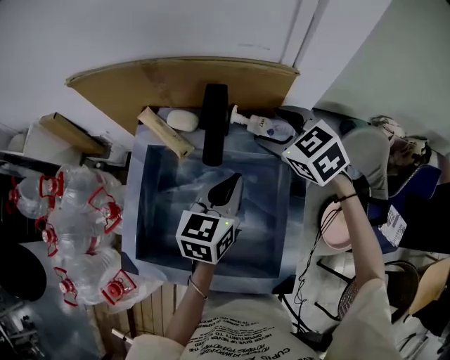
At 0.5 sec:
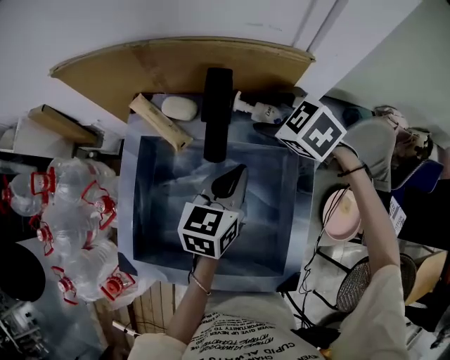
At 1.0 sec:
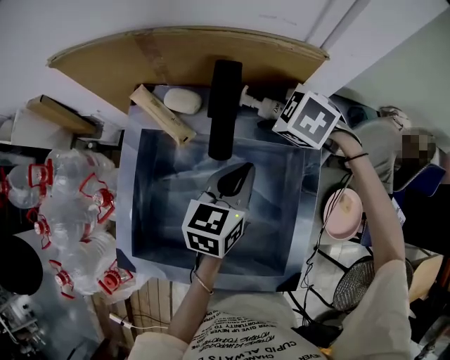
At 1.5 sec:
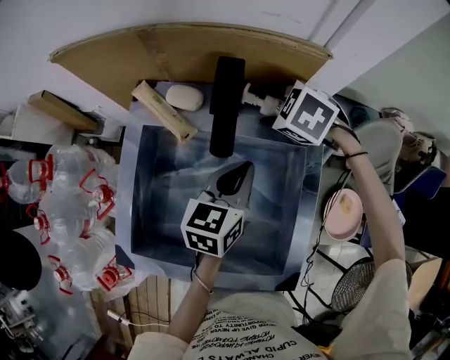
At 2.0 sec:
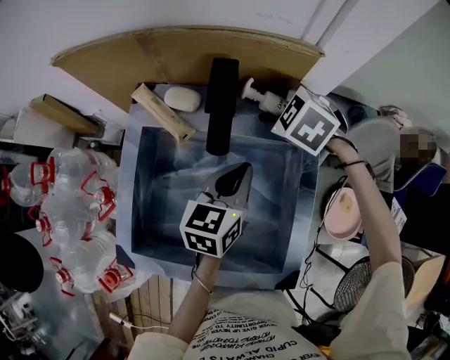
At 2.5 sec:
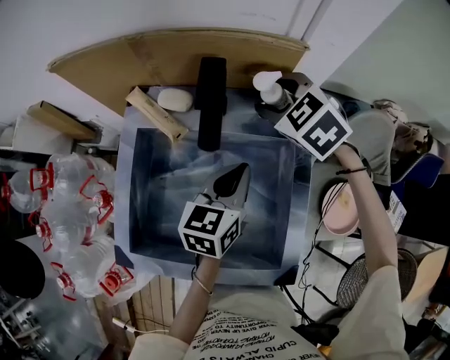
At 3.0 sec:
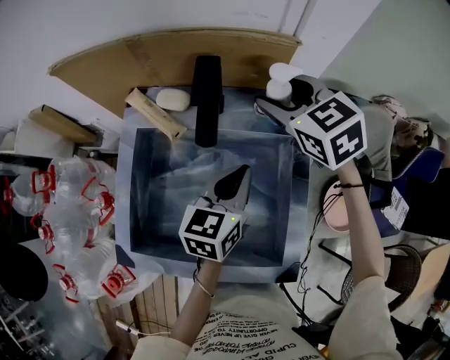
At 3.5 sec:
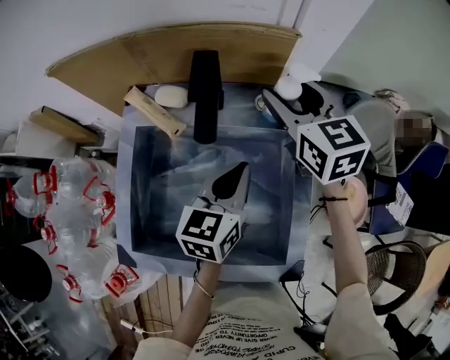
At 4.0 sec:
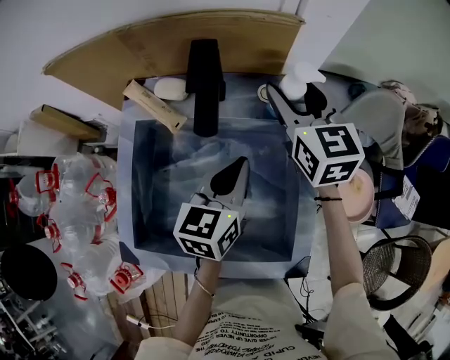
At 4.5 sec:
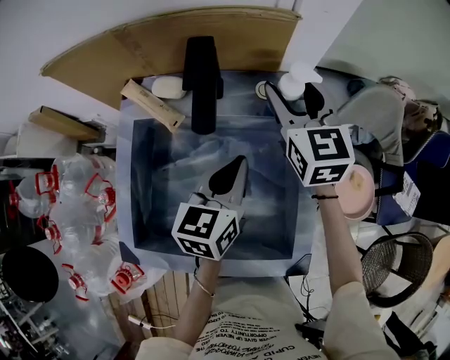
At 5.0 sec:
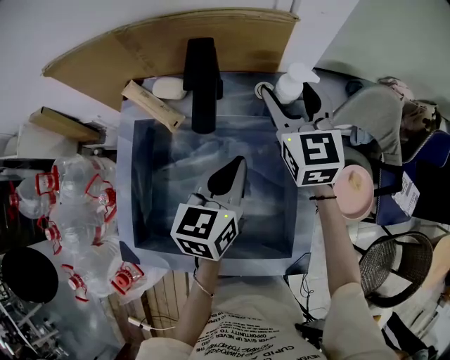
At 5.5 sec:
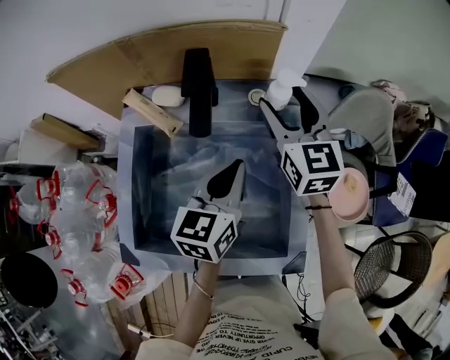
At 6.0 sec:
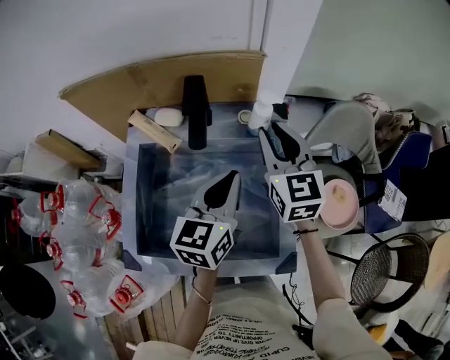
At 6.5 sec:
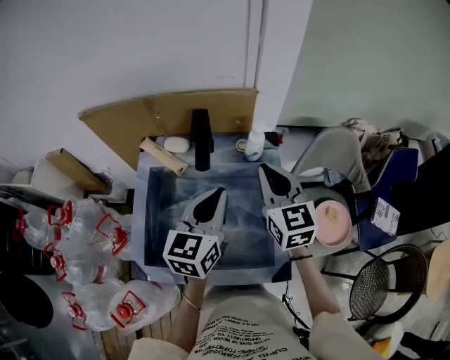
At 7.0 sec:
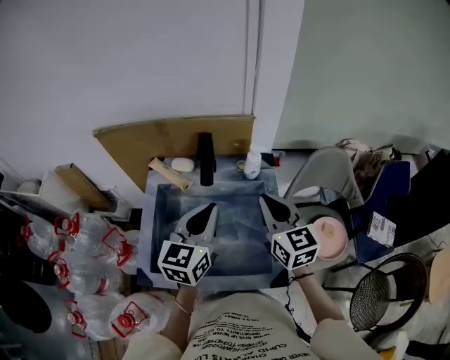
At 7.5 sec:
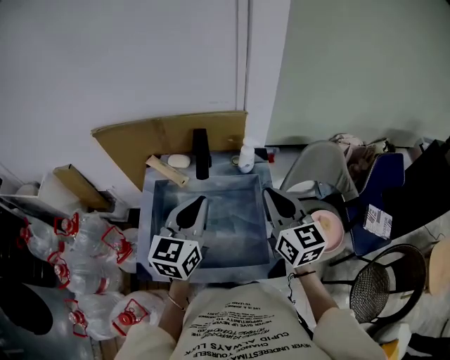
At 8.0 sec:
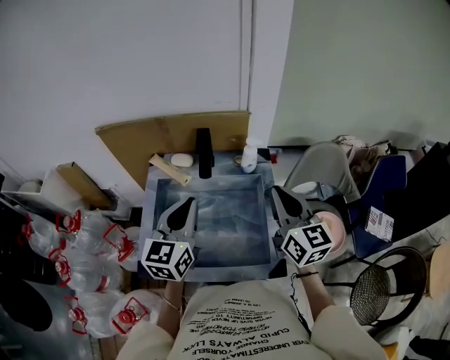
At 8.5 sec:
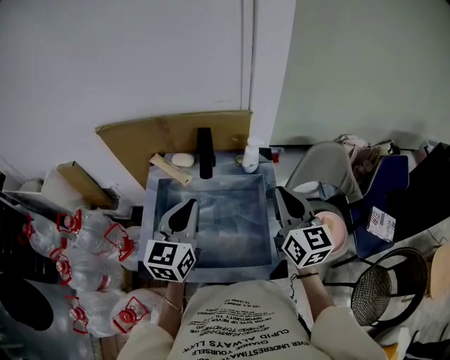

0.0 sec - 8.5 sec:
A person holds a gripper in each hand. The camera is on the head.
0.0 sec - 2.0 sec: The right gripper shifts roughly 5 cm downward, and swivels roughly 30 degrees.
2.0 sec - 4.0 sec: The right gripper goes approximately 10 cm upward and to the right, and tilts its fingers about 40 degrees upward.
4.0 sec - 6.5 sec: The left gripper shifts about 10 cm upward. The right gripper shifts roughly 15 cm backward, and closes.
6.5 sec - 8.5 sec: The right gripper heads backward, covering roughly 5 cm. The left gripper shifts roughly 5 cm to the left.

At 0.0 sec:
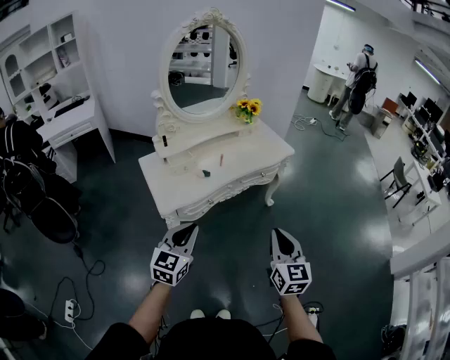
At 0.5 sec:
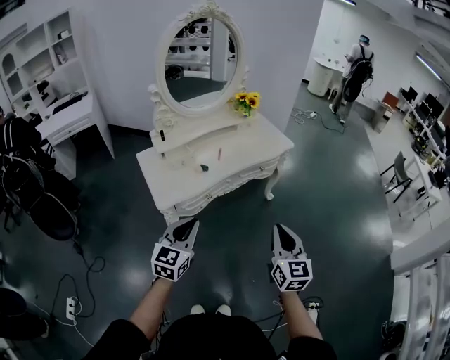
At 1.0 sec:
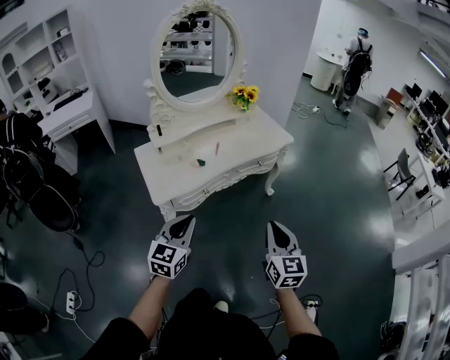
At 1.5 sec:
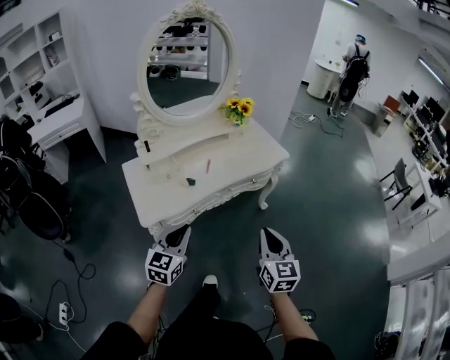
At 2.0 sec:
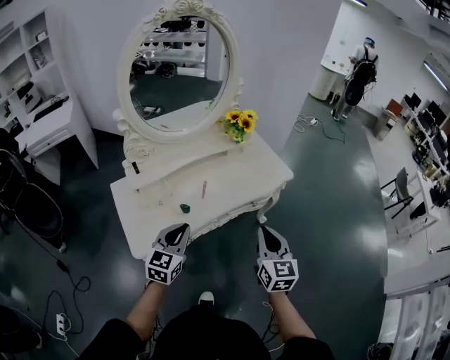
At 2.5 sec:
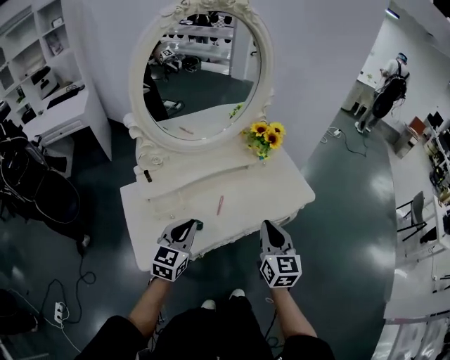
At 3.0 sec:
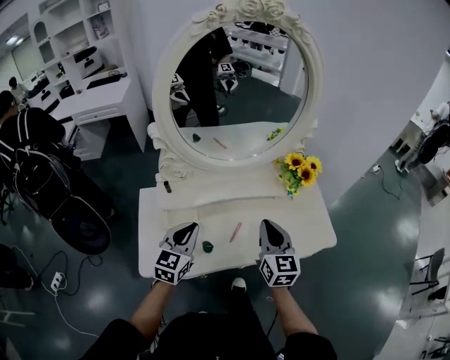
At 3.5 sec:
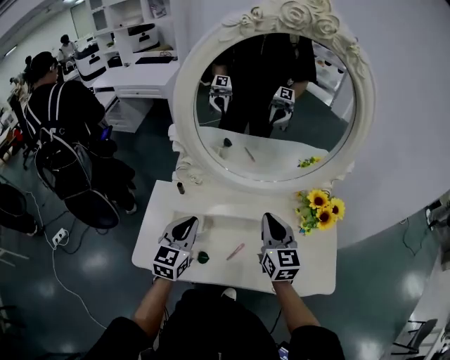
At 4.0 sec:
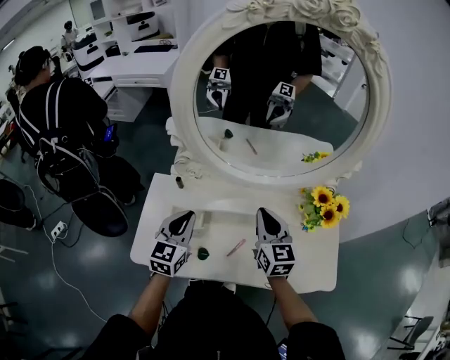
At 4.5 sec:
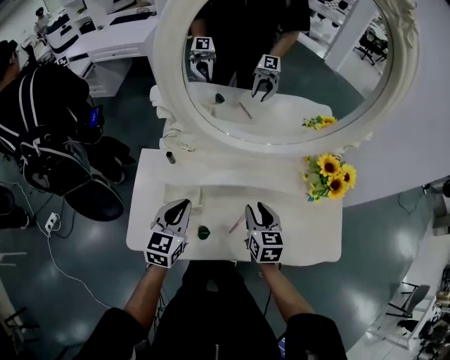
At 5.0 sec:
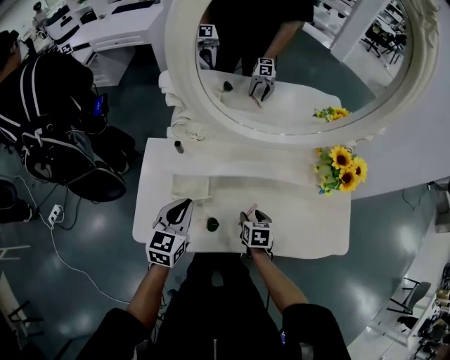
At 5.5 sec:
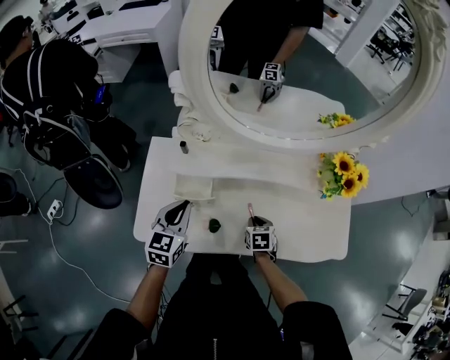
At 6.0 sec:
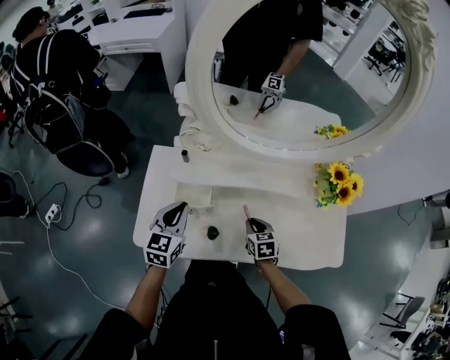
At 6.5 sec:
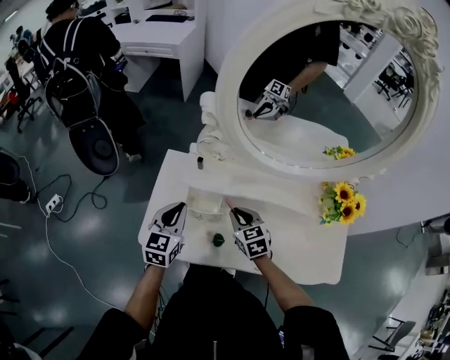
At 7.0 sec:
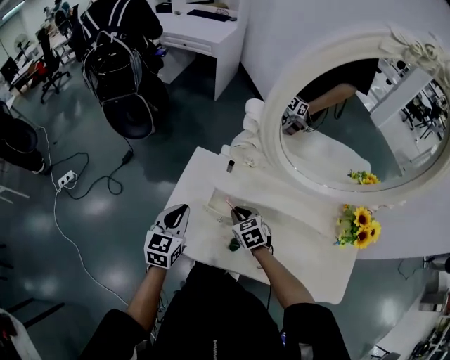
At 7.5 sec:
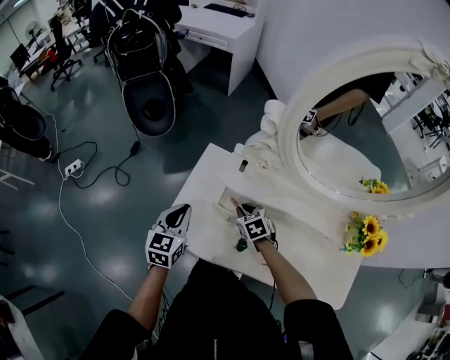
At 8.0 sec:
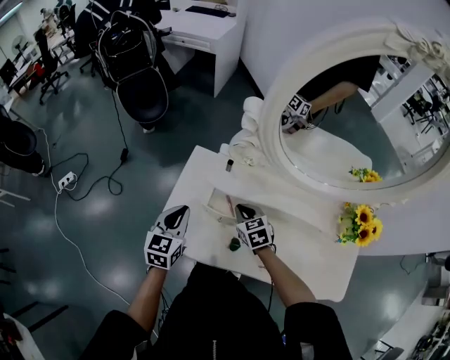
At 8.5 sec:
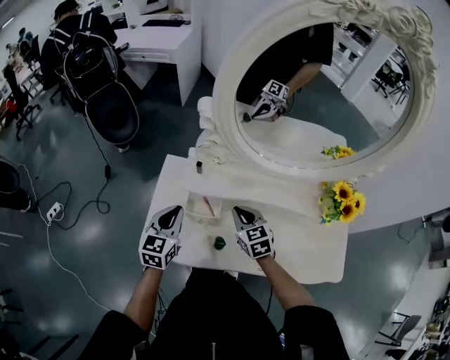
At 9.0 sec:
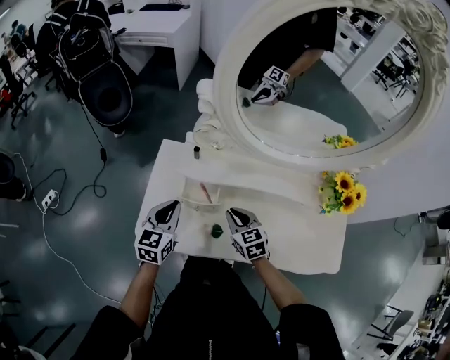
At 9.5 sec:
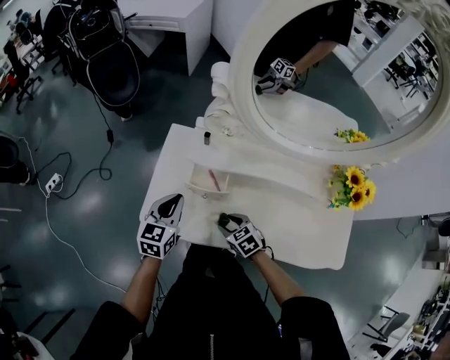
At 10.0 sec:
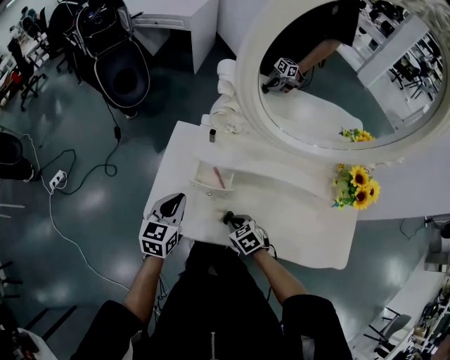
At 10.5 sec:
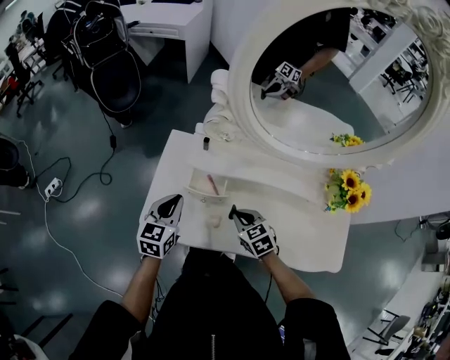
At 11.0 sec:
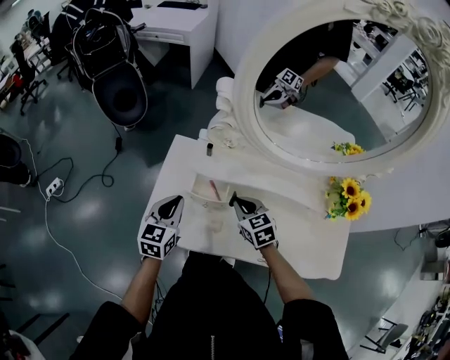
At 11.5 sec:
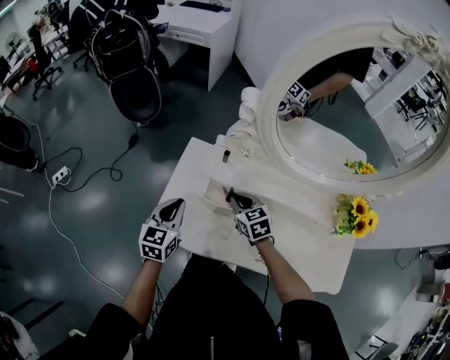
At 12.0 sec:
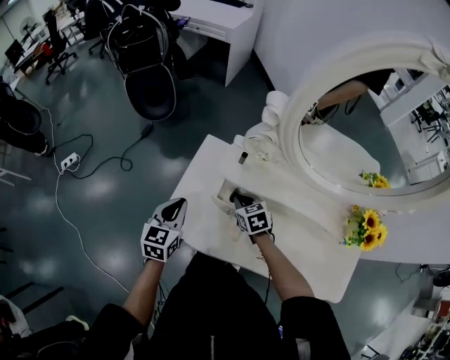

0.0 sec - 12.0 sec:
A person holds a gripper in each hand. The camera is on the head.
0.0 sec - 2.0 sec: The grippers both shift forward by roughly 30 cm.
2.0 sec - 4.0 sec: The right gripper shifts by roughly 40 cm, and changes its angle by some 40 degrees. The left gripper ends up roughly 30 cm from where it was, and rotates roughly 40 degrees.
4.0 sec - 6.0 sec: The left gripper heads downward and to the left, covering roughly 10 cm, while the right gripper is displaced downward by about 25 cm, points its fingers roughly 40 degrees further downward, and opens, then closes again.
6.0 sec - 8.0 sec: The left gripper goes roughly 10 cm to the left. The right gripper goes roughly 20 cm to the left and forward, and turns by approximately 30 degrees.
8.0 sec - 10.0 sec: The left gripper shifts by about 5 cm; the right gripper moves backward and downward, about 20 cm, and opens, then closes once more.
10.0 sec - 12.0 sec: The right gripper goes approximately 20 cm forward and upward. The left gripper goes some 5 cm to the left.

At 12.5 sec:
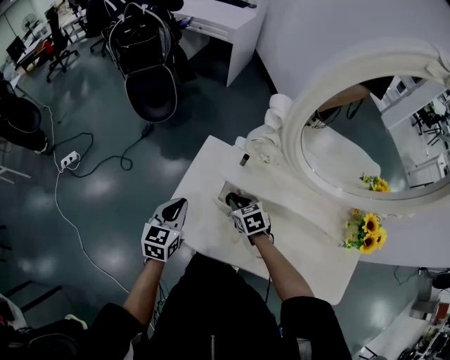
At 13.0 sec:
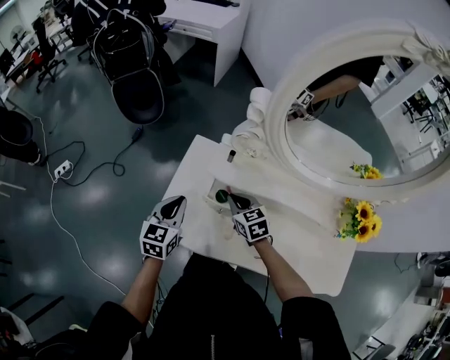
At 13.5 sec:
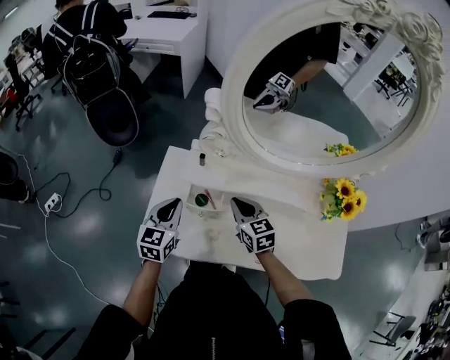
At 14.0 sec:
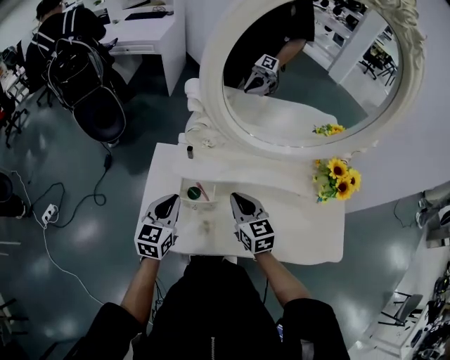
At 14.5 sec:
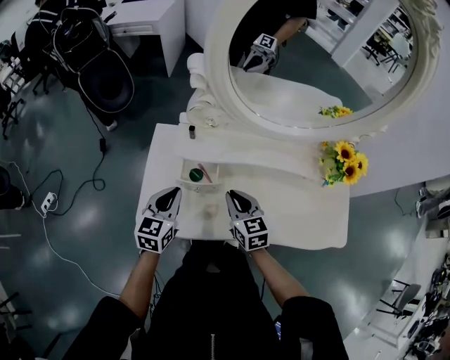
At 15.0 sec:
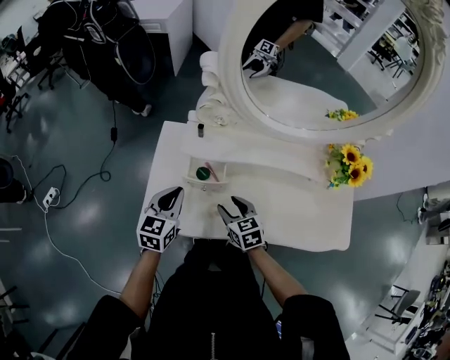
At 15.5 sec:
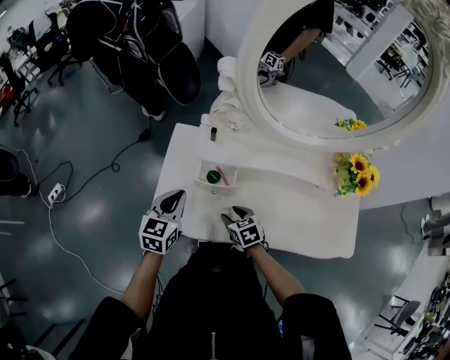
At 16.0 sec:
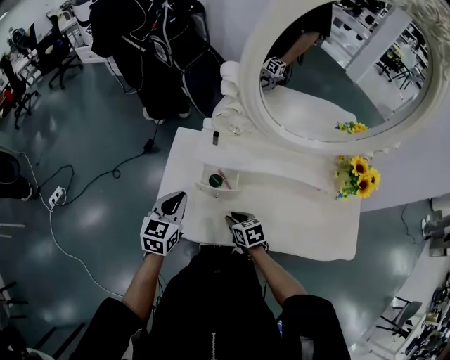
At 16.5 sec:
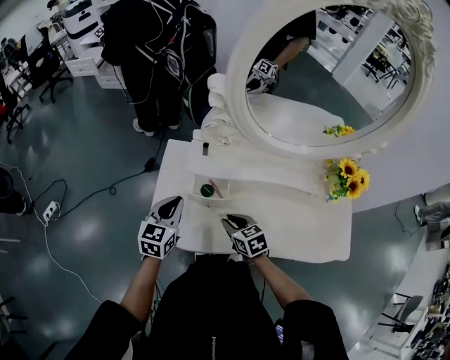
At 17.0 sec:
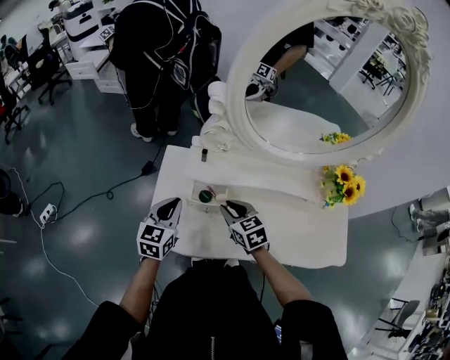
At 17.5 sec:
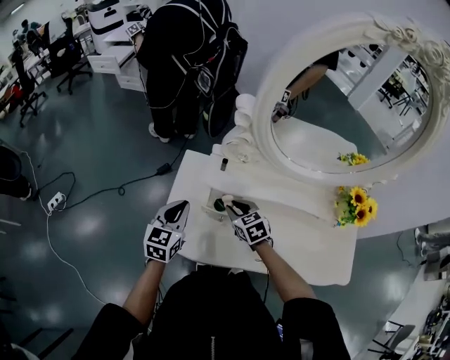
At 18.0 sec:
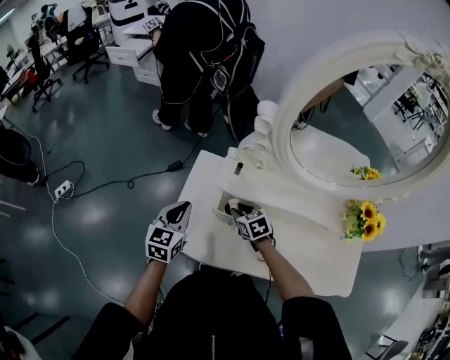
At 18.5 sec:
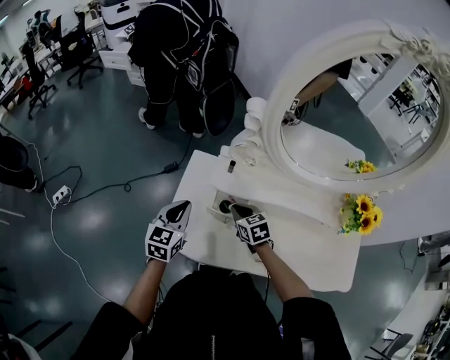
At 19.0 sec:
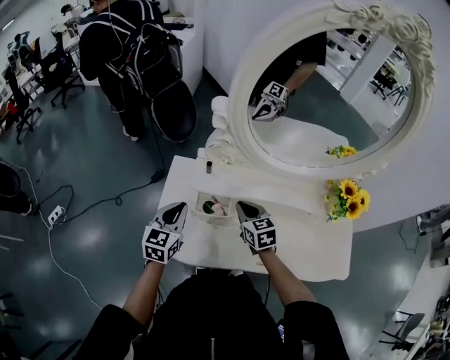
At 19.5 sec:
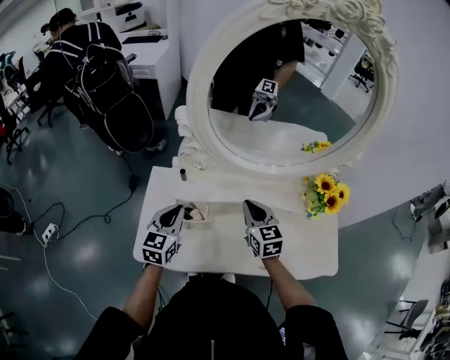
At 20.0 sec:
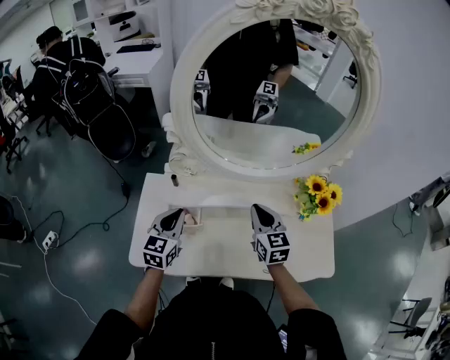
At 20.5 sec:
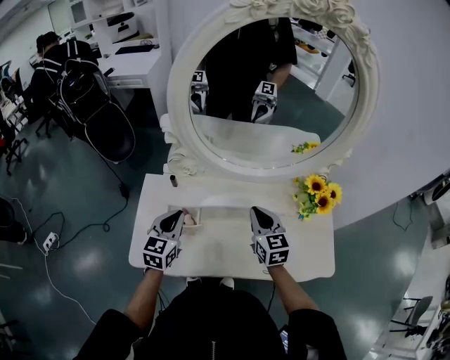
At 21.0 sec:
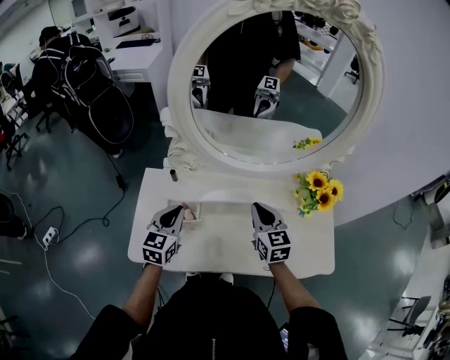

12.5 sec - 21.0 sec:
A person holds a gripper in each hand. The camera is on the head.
12.5 sec - 14.5 sec: The right gripper shifts roughly 15 cm to the right, backward and upward, and changes its angle by about 30 degrees; the left gripper is displaced to the right by approximately 10 cm.
14.5 sec - 16.5 sec: The right gripper goes roughly 10 cm downward and to the left, swivels roughly 20 degrees, and opens and closes again.
16.5 sec - 19.0 sec: The right gripper goes approximately 15 cm forward, upward and to the right.
19.0 sec - 21.0 sec: The left gripper is displaced to the right by roughly 10 cm. Meanwhile the right gripper heads to the right and upward, covering roughly 20 cm.
